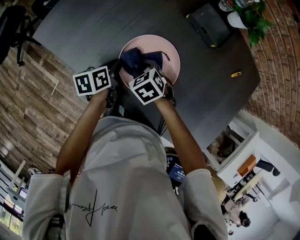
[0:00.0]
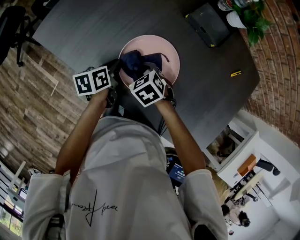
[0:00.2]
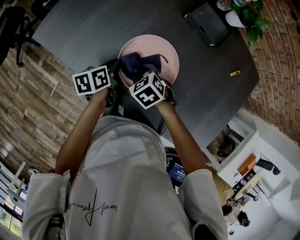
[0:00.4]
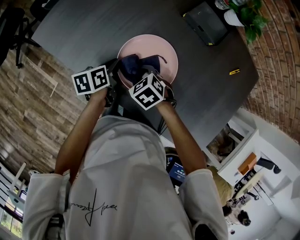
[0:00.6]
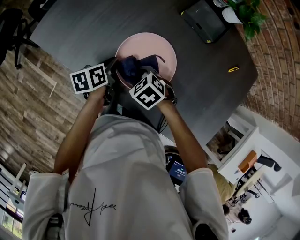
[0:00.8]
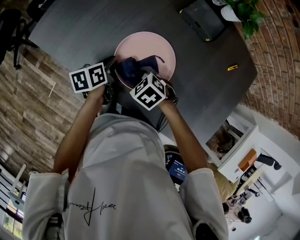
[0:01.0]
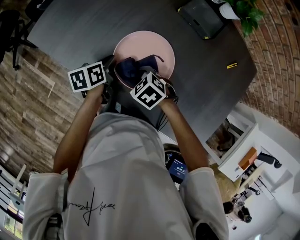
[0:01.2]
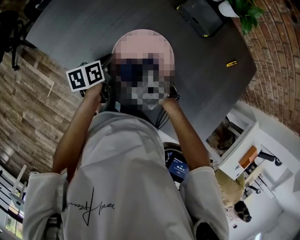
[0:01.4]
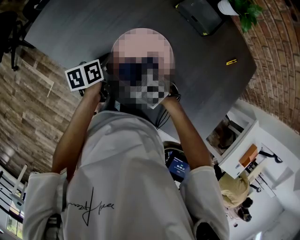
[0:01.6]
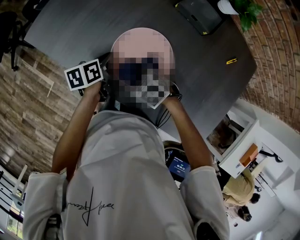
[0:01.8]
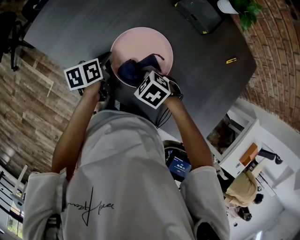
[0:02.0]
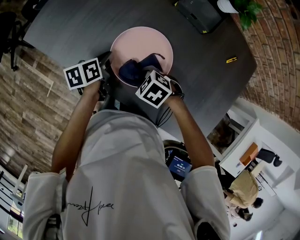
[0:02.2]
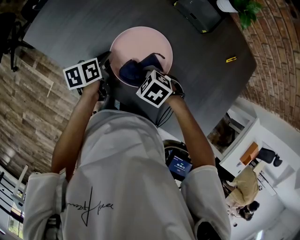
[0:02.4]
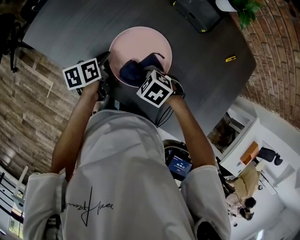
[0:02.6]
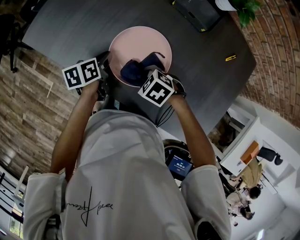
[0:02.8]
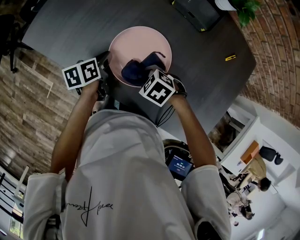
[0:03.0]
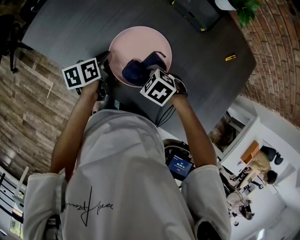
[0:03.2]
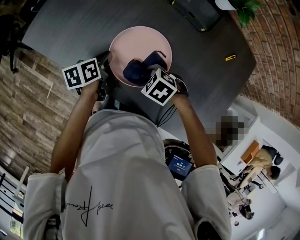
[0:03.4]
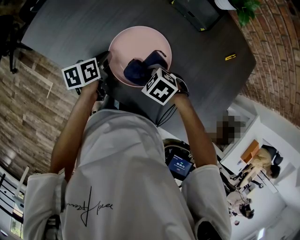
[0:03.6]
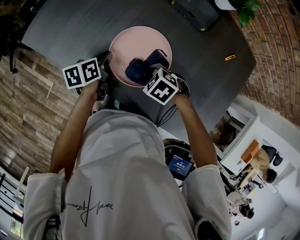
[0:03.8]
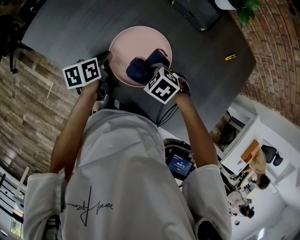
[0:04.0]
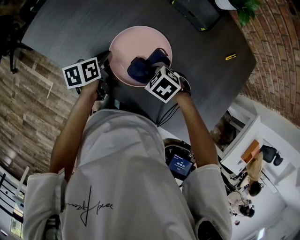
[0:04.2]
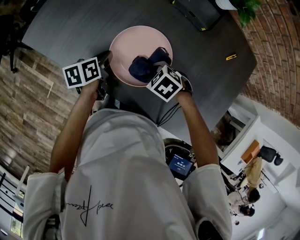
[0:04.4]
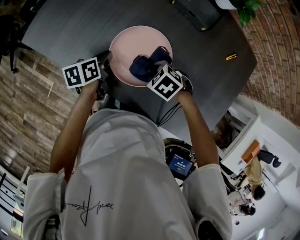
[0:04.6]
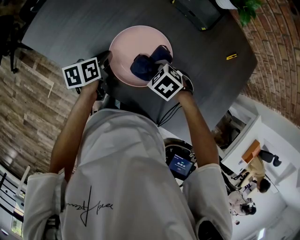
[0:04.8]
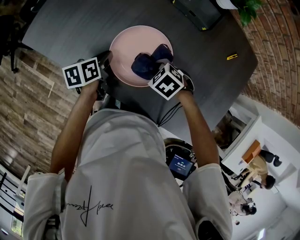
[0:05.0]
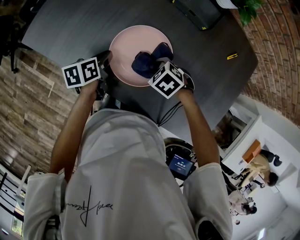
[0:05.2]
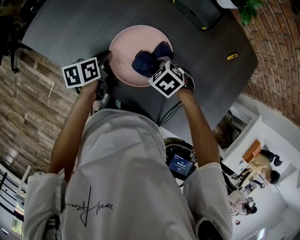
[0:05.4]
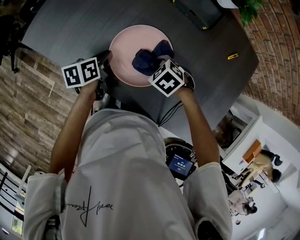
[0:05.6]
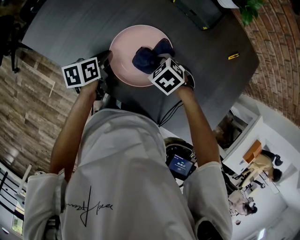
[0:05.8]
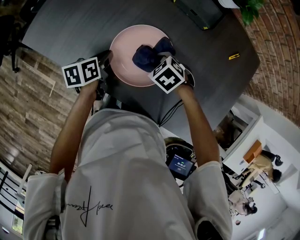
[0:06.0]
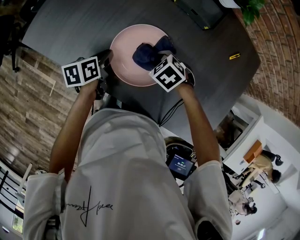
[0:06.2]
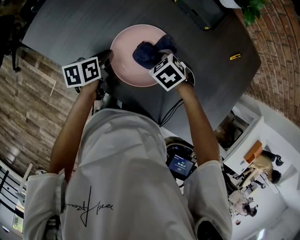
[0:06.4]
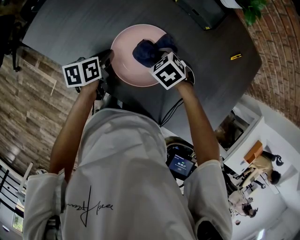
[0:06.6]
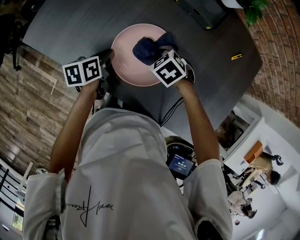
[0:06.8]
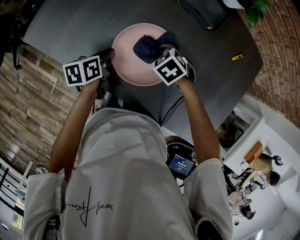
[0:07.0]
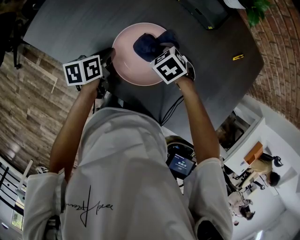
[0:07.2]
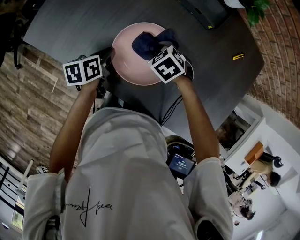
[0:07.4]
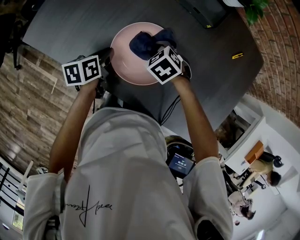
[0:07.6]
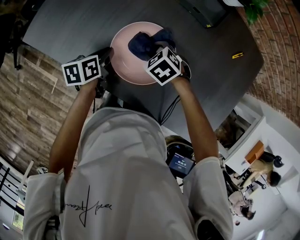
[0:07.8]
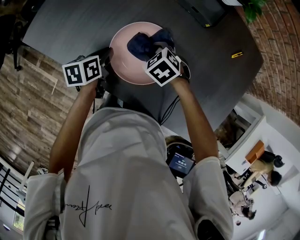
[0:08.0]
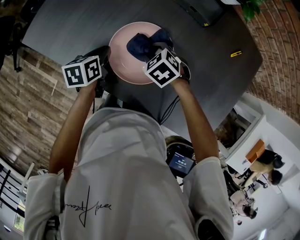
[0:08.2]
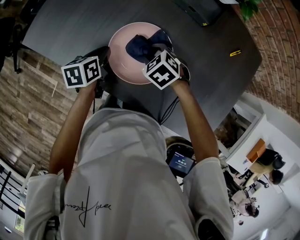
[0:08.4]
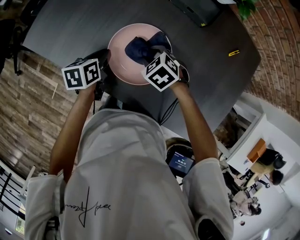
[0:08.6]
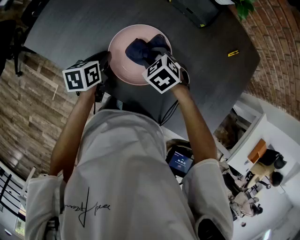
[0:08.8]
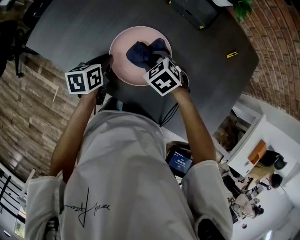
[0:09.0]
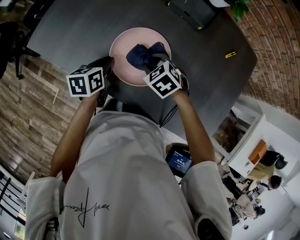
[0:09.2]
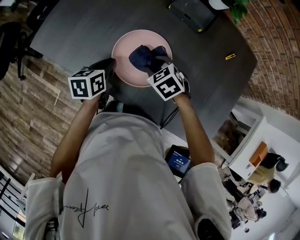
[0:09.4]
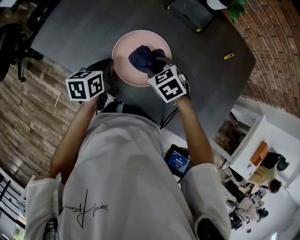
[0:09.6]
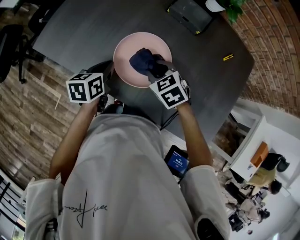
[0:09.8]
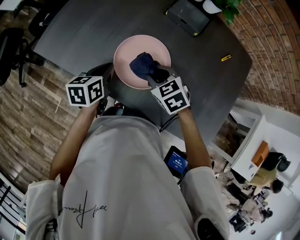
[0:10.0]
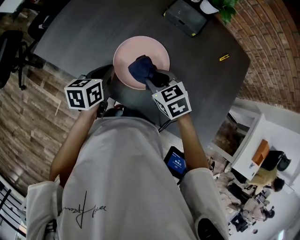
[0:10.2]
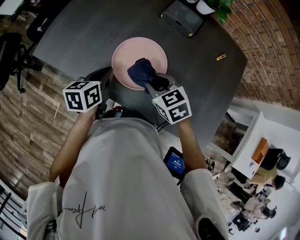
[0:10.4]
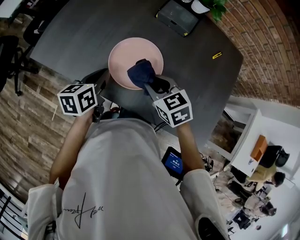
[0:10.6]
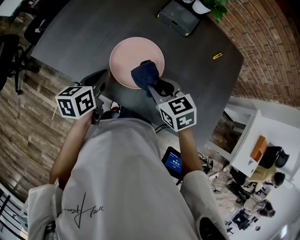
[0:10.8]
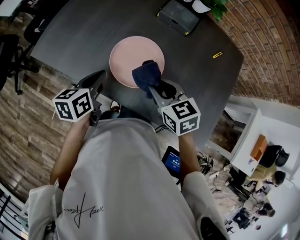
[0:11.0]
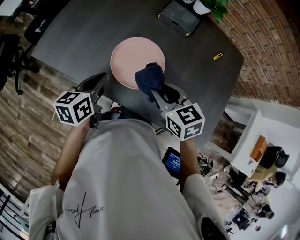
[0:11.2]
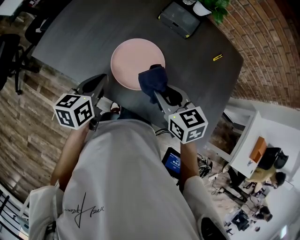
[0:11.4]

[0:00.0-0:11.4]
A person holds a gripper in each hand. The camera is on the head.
0:00.0 to 0:01.4: The right gripper heads backward, covering some 5 cm.
0:01.4 to 0:02.8: The grippers make only small movements.
0:02.8 to 0:04.2: There are only small adjustments of the grippers.
0:04.2 to 0:05.6: The grippers stay close to where they were, moving slightly.
0:05.6 to 0:07.2: The right gripper ends up about 5 cm from where it was.
0:07.2 to 0:08.6: The grippers move only a little.
0:08.6 to 0:10.0: The right gripper moves upward and backward, about 10 cm. Meanwhile the left gripper moves upward, about 5 cm.
0:10.0 to 0:11.4: The left gripper heads upward, covering about 5 cm. Meanwhile the right gripper travels upward and backward by approximately 10 cm, and rotates some 20 degrees.

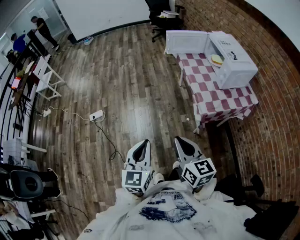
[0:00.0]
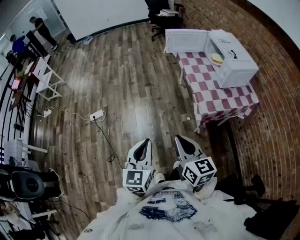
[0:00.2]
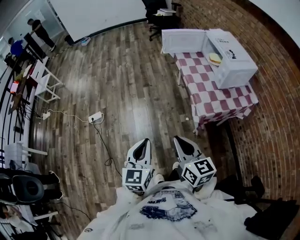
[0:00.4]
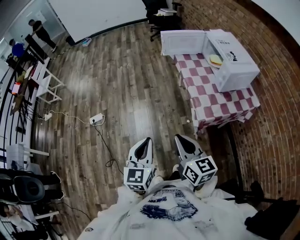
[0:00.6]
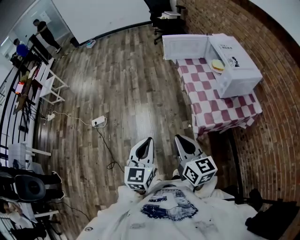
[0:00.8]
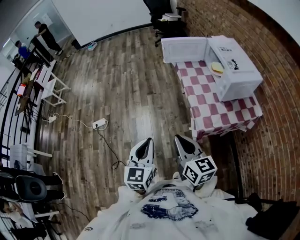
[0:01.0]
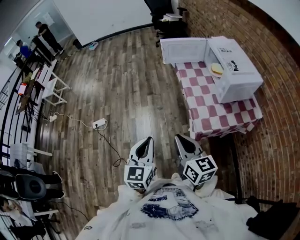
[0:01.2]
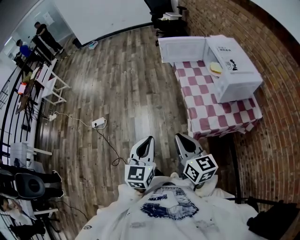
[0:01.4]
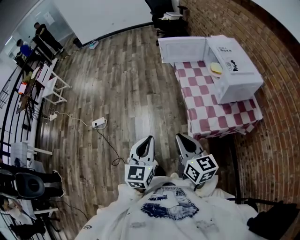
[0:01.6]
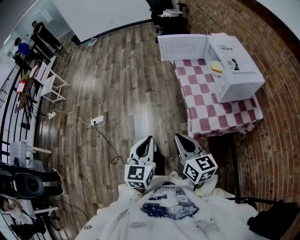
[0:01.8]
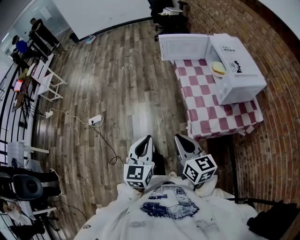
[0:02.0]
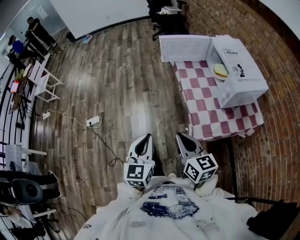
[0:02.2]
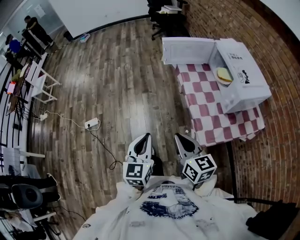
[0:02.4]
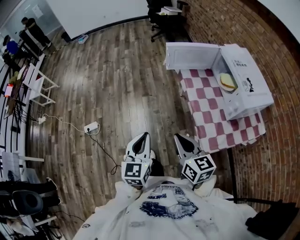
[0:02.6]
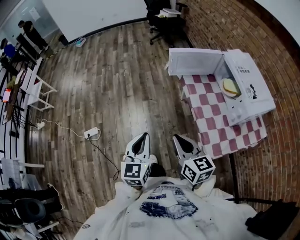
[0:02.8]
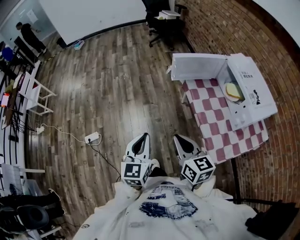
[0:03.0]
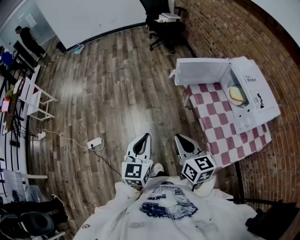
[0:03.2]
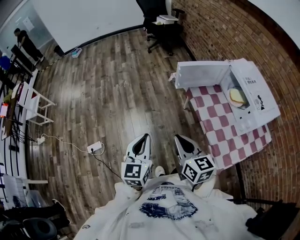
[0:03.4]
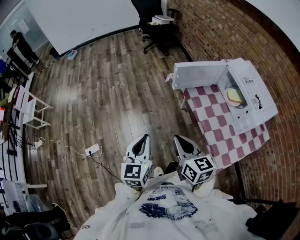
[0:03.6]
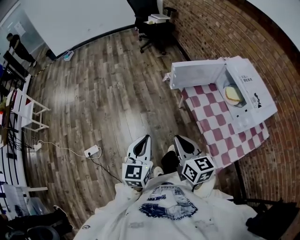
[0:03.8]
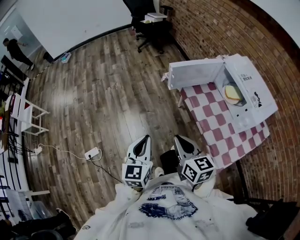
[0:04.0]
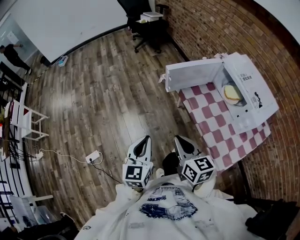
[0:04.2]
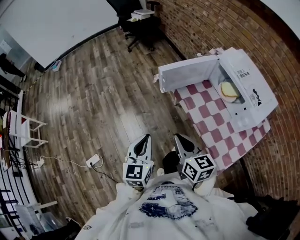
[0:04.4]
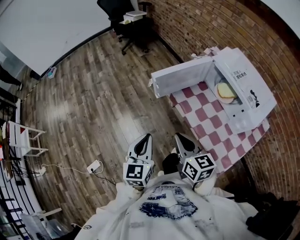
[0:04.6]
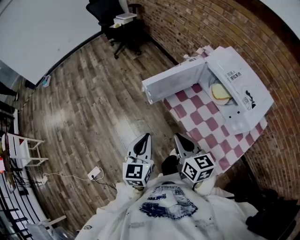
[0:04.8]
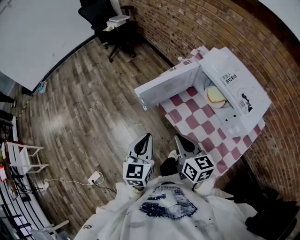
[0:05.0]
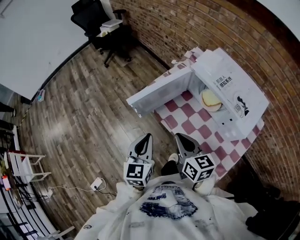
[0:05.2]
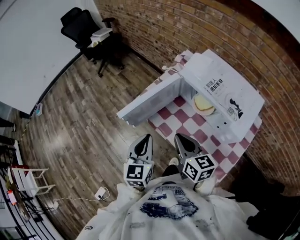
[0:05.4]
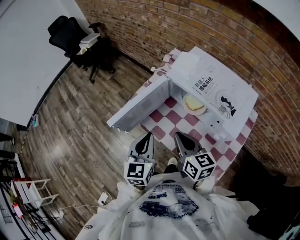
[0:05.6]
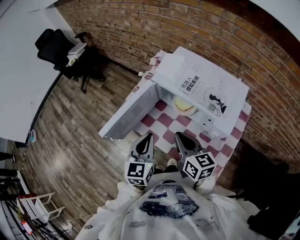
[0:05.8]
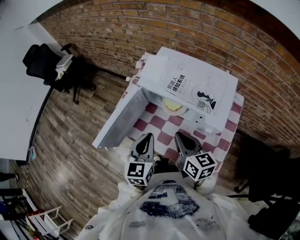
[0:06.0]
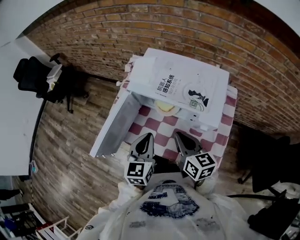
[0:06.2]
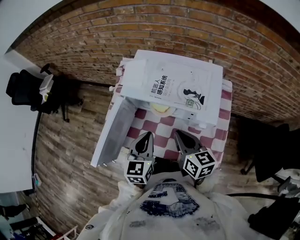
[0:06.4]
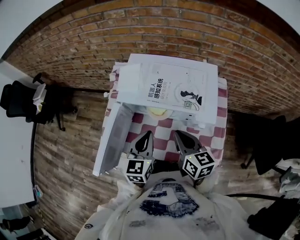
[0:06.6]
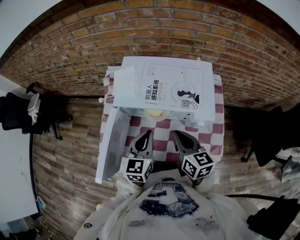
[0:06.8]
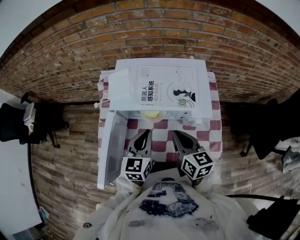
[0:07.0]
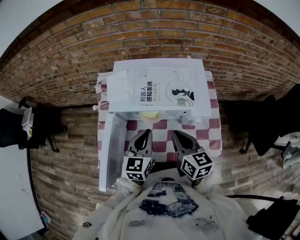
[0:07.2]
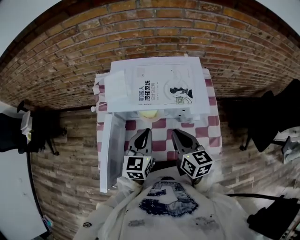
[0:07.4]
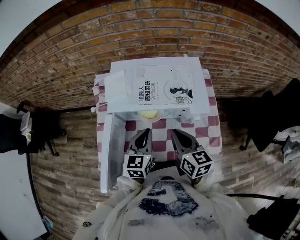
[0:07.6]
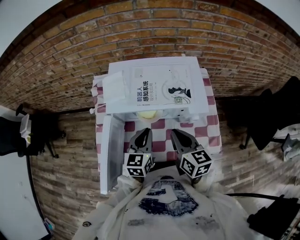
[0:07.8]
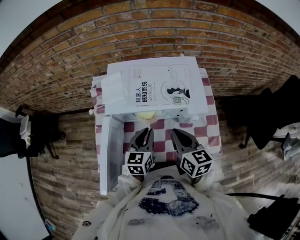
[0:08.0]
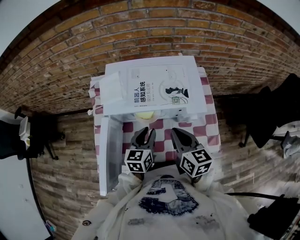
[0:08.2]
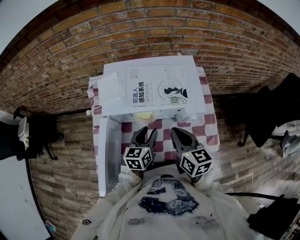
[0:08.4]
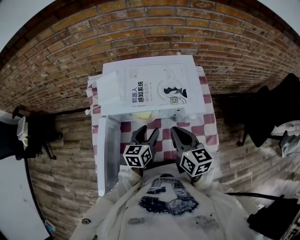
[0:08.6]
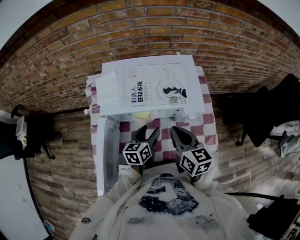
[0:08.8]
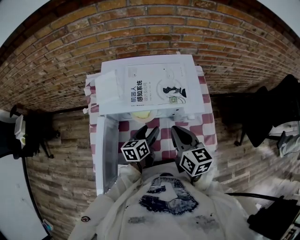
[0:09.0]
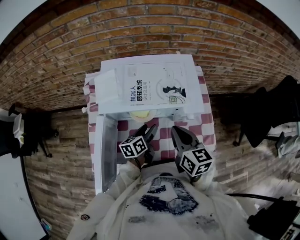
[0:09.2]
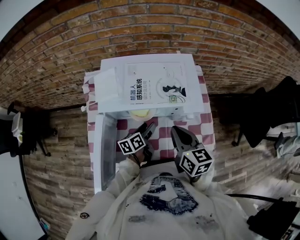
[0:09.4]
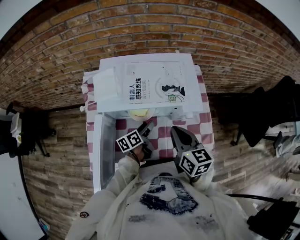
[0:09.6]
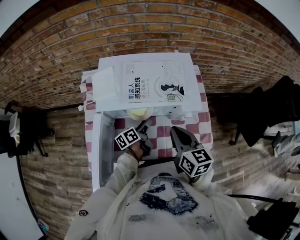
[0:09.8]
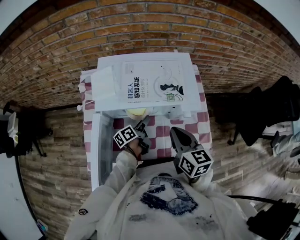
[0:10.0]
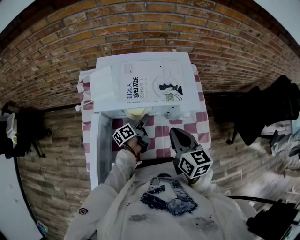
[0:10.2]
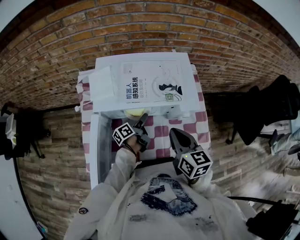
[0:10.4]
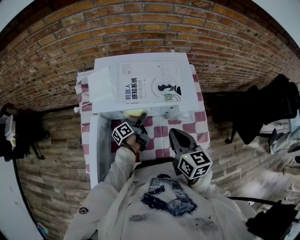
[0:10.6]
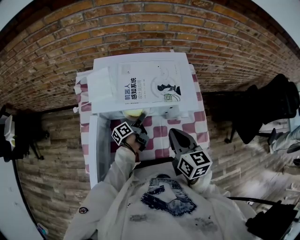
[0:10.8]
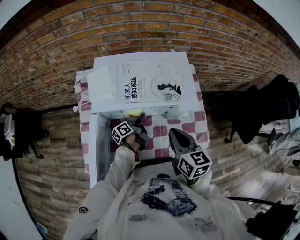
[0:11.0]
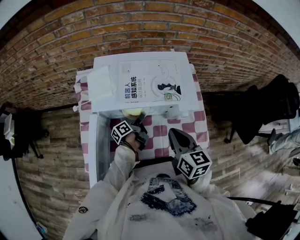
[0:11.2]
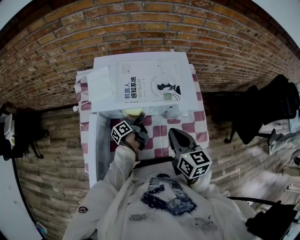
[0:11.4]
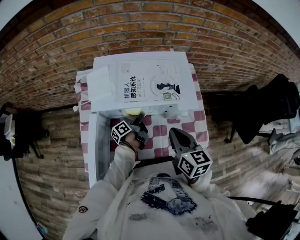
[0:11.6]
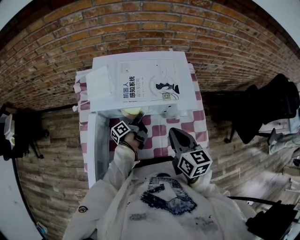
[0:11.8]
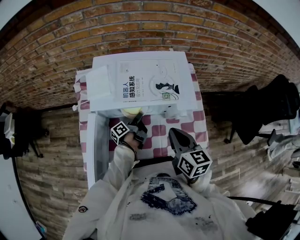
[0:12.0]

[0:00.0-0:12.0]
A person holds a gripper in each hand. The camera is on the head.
0:00.0 to 0:01.6: The grippers both shift to the right and forward by about 20 cm.
0:01.6 to 0:03.0: The two grippers go roughly 30 cm forward and to the left.
0:03.0 to 0:04.4: The grippers both shift forward by some 15 cm.
0:04.4 to 0:06.0: The right gripper ends up some 30 cm from where it was, and turns by about 40 degrees; the left gripper shifts by approximately 35 cm, and swivels approximately 40 degrees.
0:06.0 to 0:07.6: The left gripper changes place by some 10 cm, and swivels roughly 30 degrees. Meanwhile the right gripper swivels about 30 degrees.
0:07.6 to 0:09.0: The left gripper heads downward, covering some 10 cm, swivels some 30 degrees, and opens its fingers.
0:09.0 to 0:10.4: The left gripper travels downward and forward by about 10 cm, and twists roughly 40 degrees counterclockwise, seen from behind.
0:10.4 to 0:12.0: The left gripper closes its fingers.
